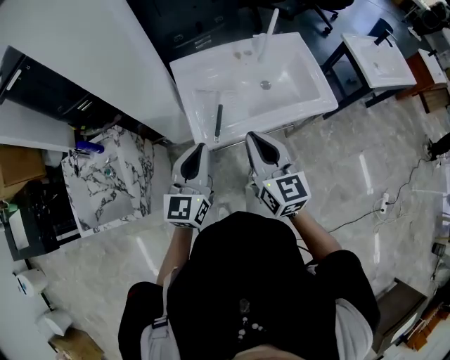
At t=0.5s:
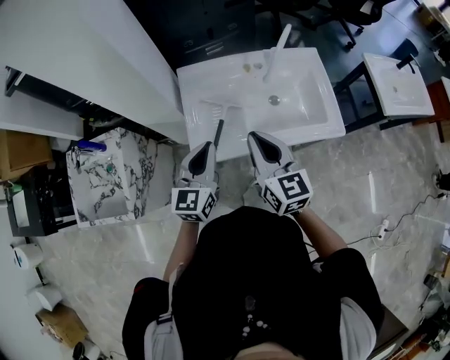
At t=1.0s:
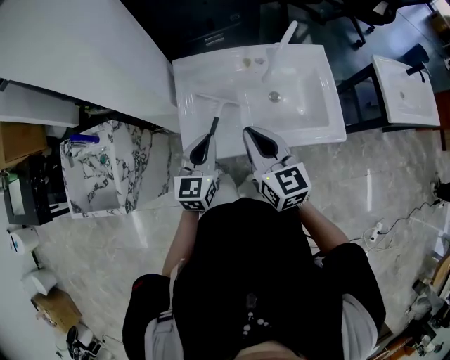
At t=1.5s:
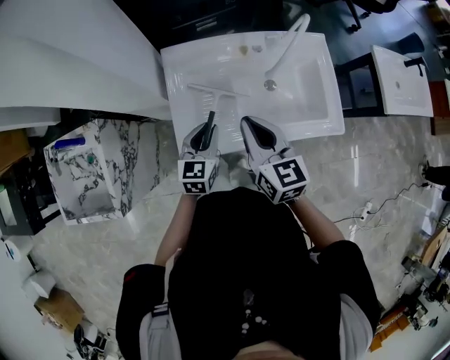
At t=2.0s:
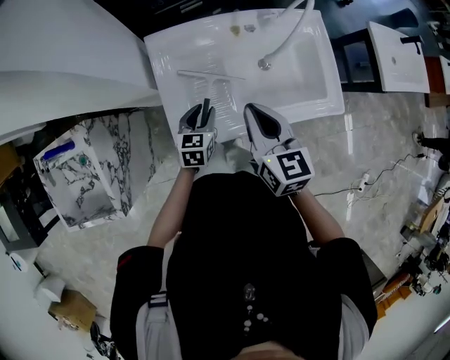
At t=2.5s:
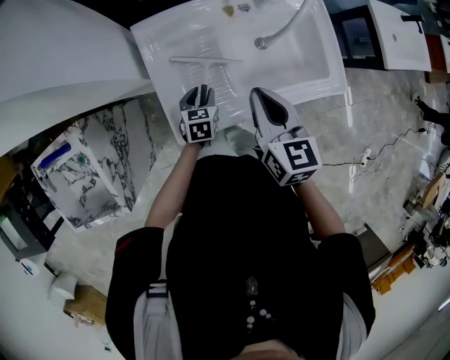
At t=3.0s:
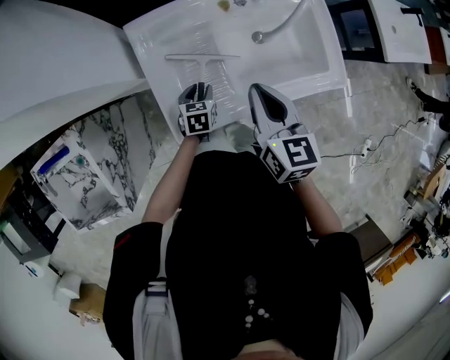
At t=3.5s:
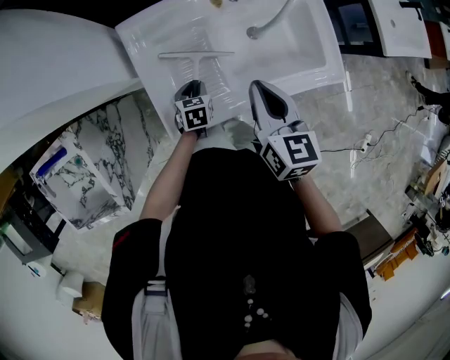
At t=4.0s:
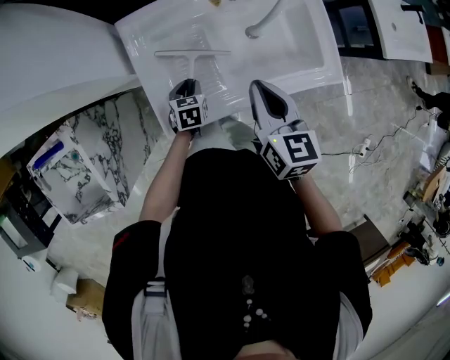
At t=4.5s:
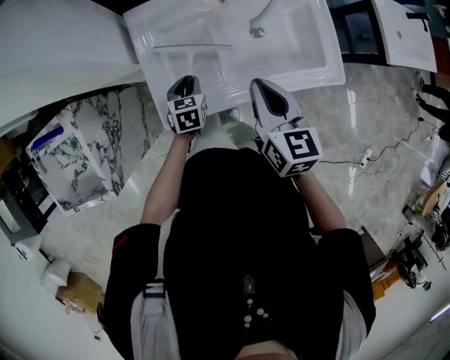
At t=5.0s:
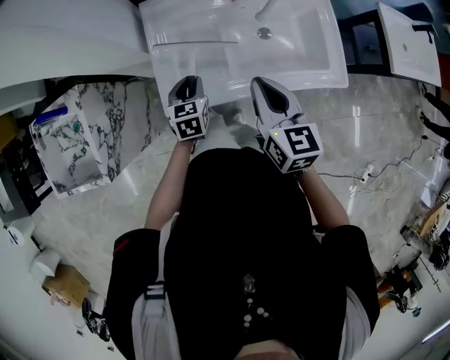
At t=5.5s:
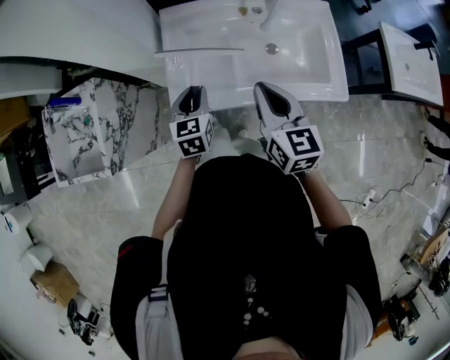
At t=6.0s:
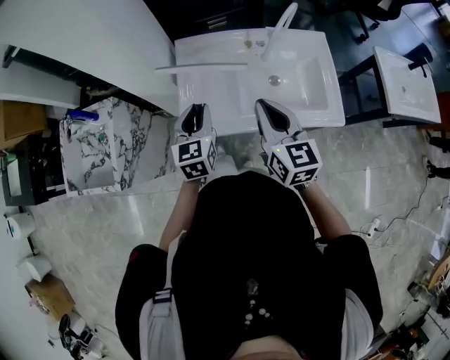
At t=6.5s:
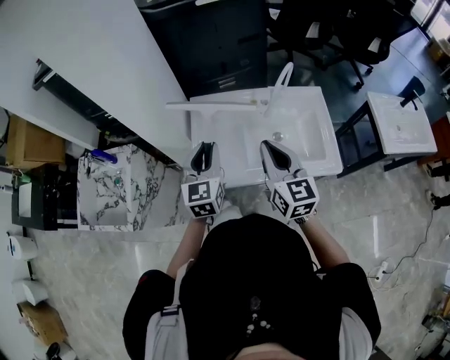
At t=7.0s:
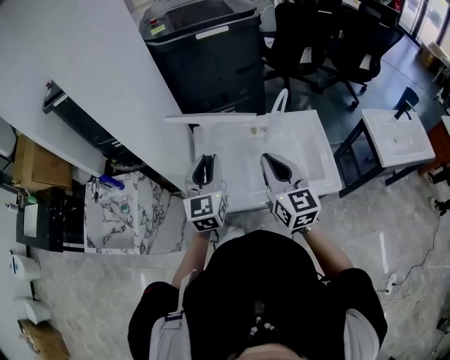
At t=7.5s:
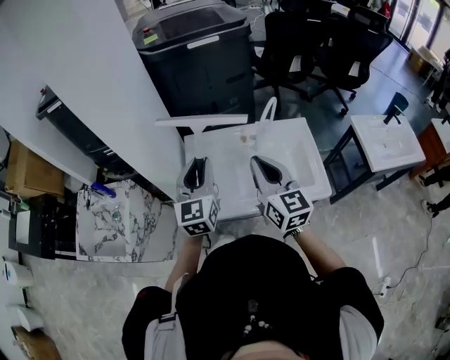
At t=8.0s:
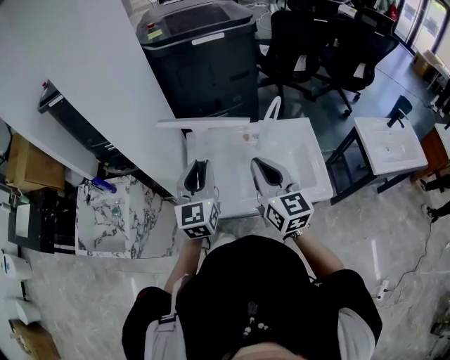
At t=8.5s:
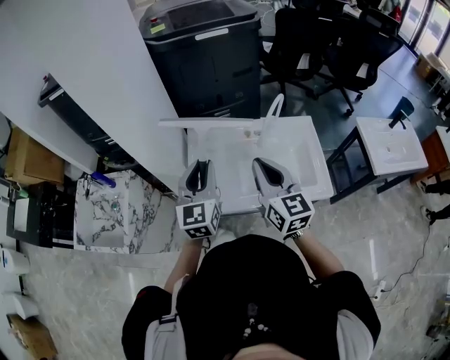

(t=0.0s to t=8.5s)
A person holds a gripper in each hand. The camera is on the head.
t=0.0s - t=2.0s: The left gripper goes some 30 cm downward and forward, angles its fingers downward, by some 30 degrees, and opens; the right gripper goes approximately 20 cm forward and downward.
t=2.0s - t=4.0s: The right gripper heads to the right, covering about 5 cm. Meanwhile the left gripper moves downward, roughly 10 cm.
t=4.0s - t=6.5s: The left gripper moves upward, some 35 cm, and tilts its fingers about 40 degrees upward; the right gripper goes some 15 cm upward and backward, and turns by about 30 degrees.
t=6.5s - t=8.5s: The left gripper moves upward, roughly 5 cm.

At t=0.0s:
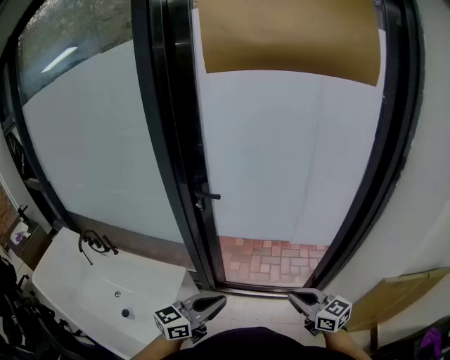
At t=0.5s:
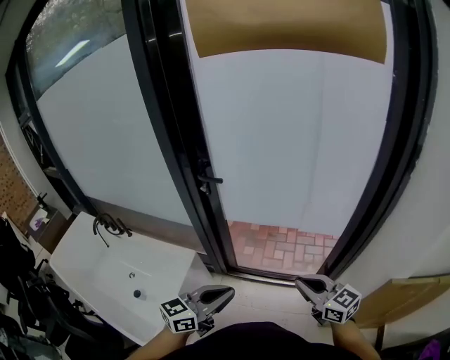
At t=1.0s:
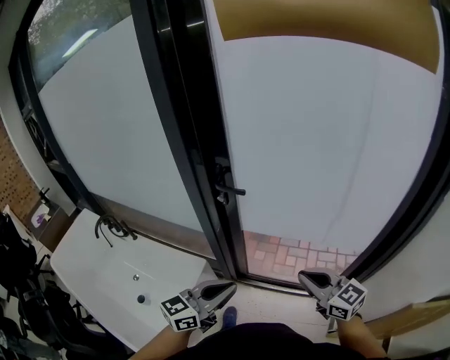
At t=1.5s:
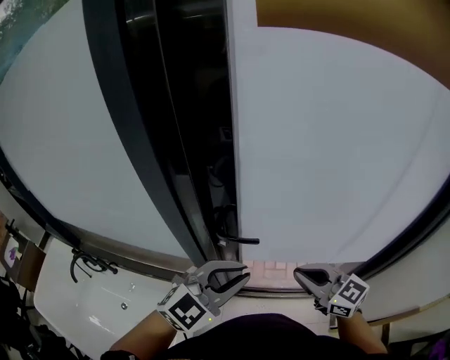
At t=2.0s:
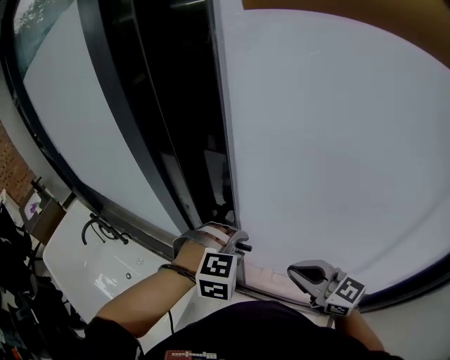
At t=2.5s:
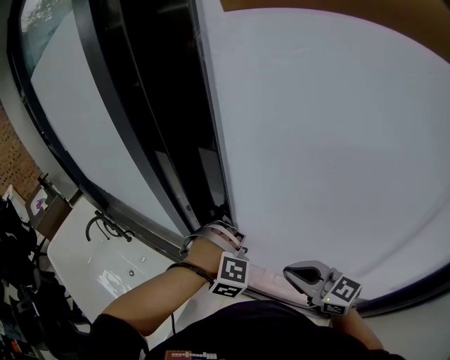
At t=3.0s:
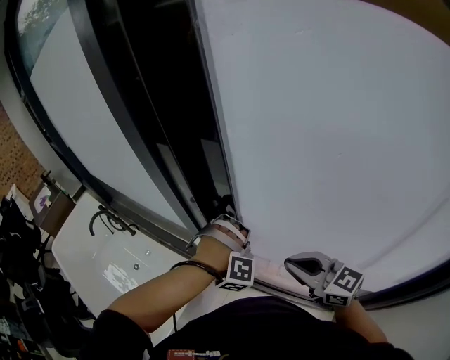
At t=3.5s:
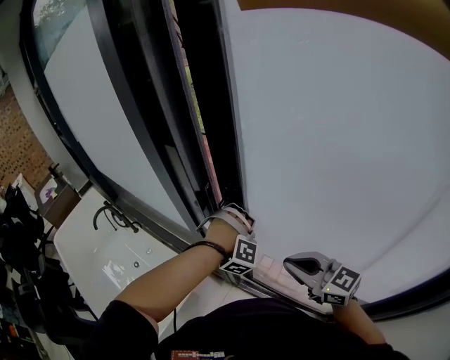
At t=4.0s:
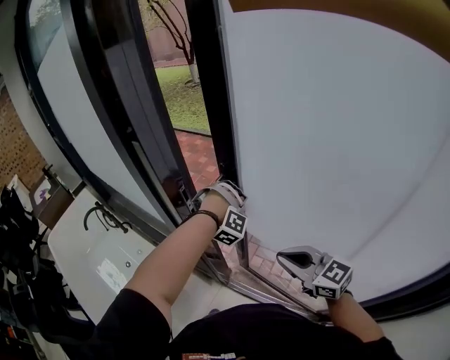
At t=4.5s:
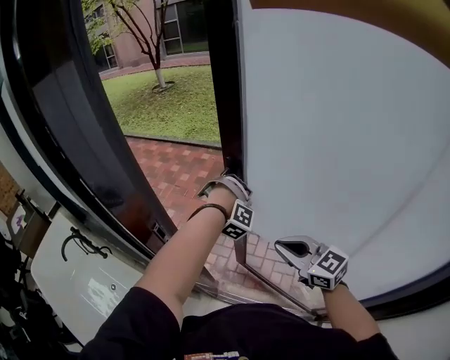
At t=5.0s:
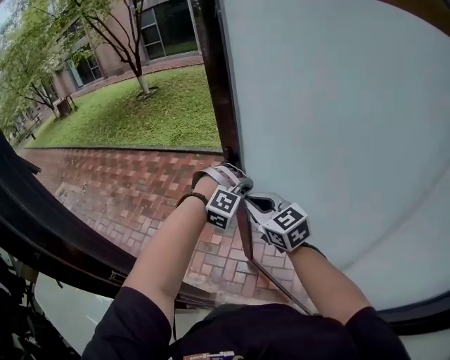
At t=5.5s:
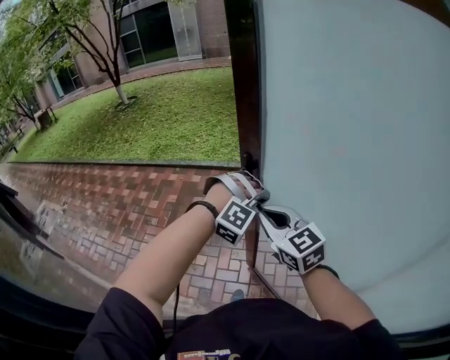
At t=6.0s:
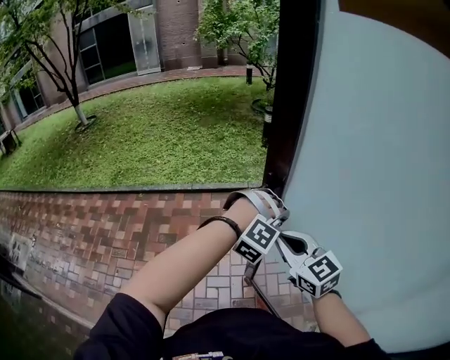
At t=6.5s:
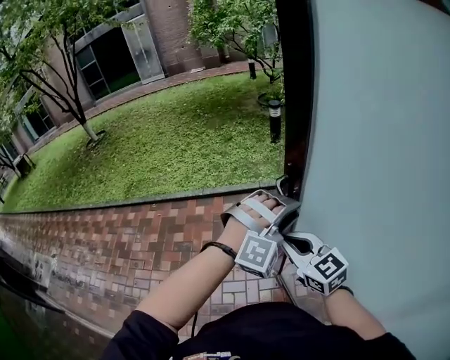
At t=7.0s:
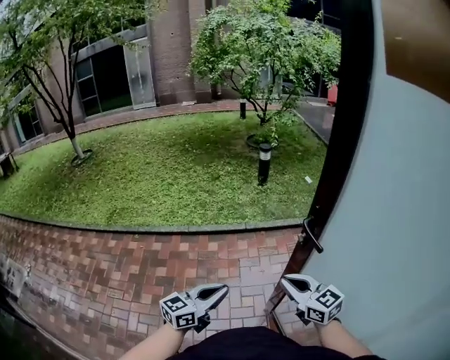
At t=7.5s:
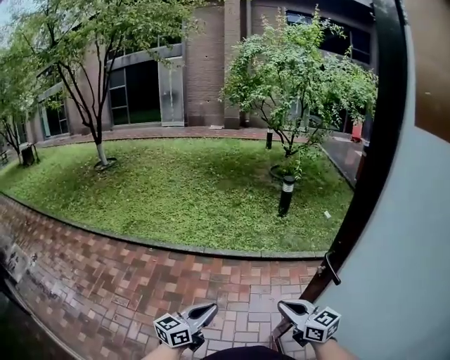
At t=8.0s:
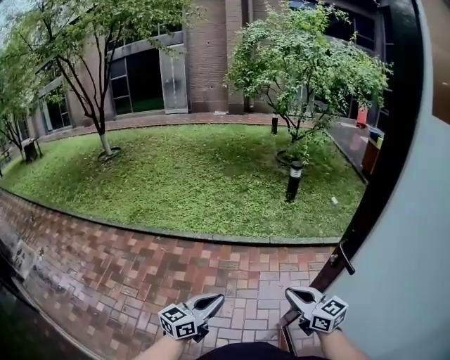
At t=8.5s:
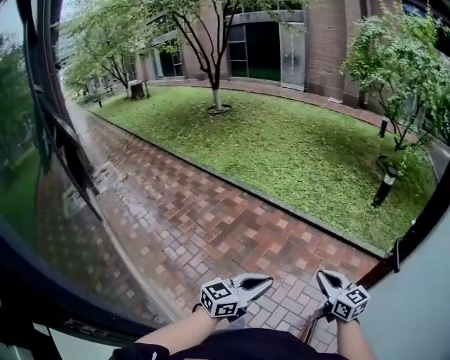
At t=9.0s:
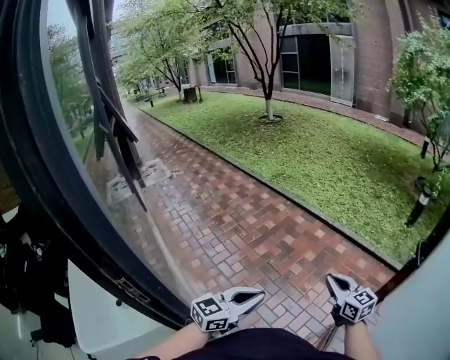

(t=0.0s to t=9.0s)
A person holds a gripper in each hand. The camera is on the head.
t=0.0s - t=2.0s: The right gripper moves some 35 cm, and rotates roughly 20 degrees, while the left gripper moves roughly 10 cm upward and comes back, tilts its fingers approximately 50 degrees downward, and opens up.
t=2.0s - t=4.5s: The right gripper goes about 15 cm to the right and forward; the left gripper heads to the right and forward, covering approximately 30 cm, turns by roughly 40 degrees, and closes up.
t=4.5s - t=7.0s: The left gripper travels upward and back again, some 10 cm each way, angles its fingers upward, by approximately 40 degrees, and opens and closes again. Meanwhile the right gripper shifts by some 50 cm, and turns by some 30 degrees.
t=7.0s - t=9.0s: The left gripper shifts by approximately 30 cm, and swivels some 50 degrees, while the right gripper moves roughly 15 cm, and rotates some 40 degrees.

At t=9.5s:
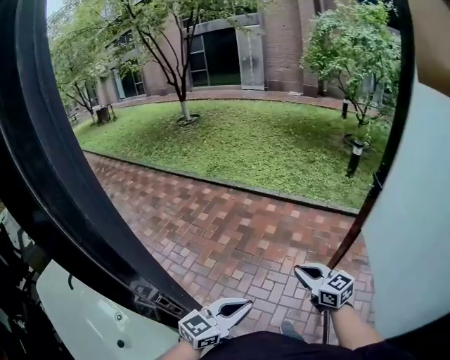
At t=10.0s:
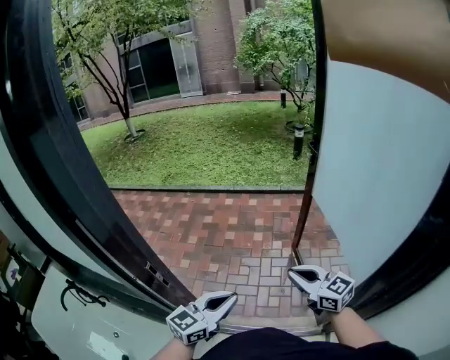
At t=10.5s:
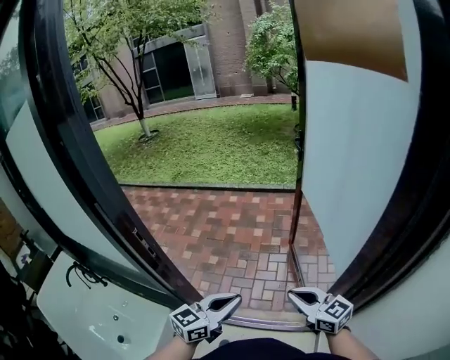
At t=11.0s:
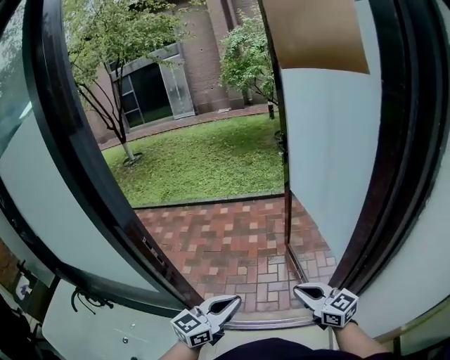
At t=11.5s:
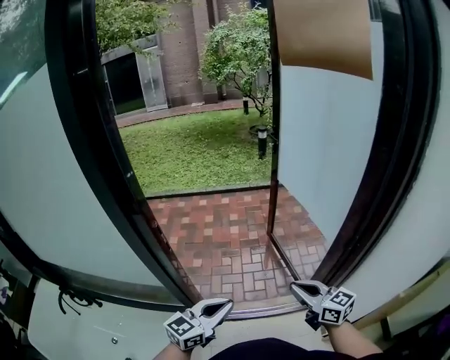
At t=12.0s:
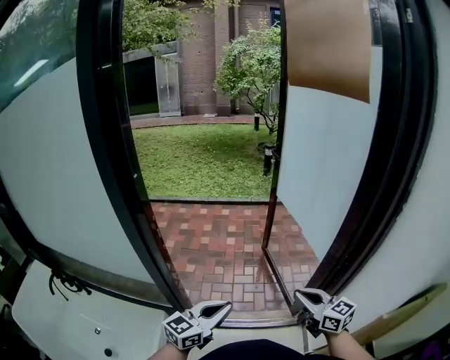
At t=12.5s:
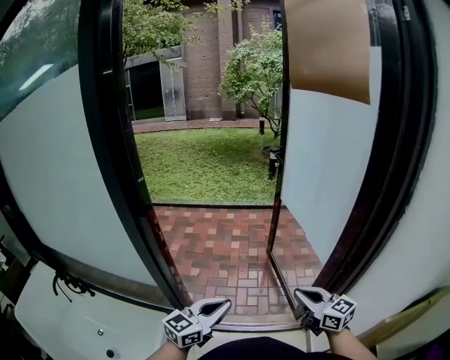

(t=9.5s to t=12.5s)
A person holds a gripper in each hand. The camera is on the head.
t=9.5s - t=11.0s: The left gripper travels backward by about 25 cm, while the right gripper travels backward and to the right by roughly 40 cm.
t=11.0s - t=12.5s: The grippers both shift backward by some 10 cm.

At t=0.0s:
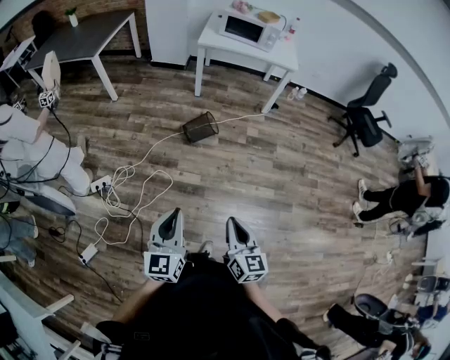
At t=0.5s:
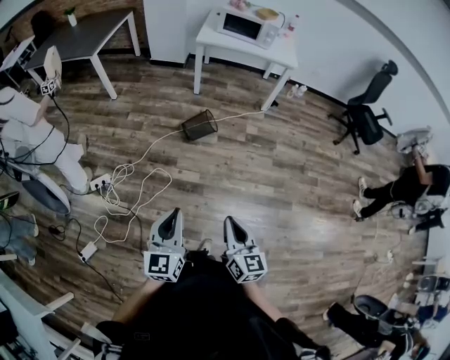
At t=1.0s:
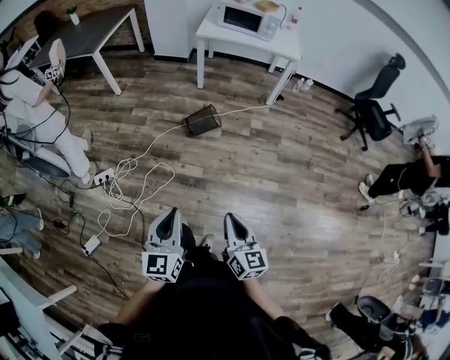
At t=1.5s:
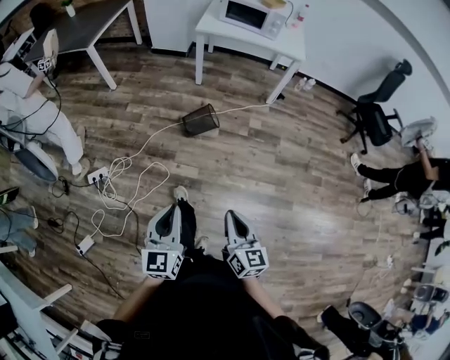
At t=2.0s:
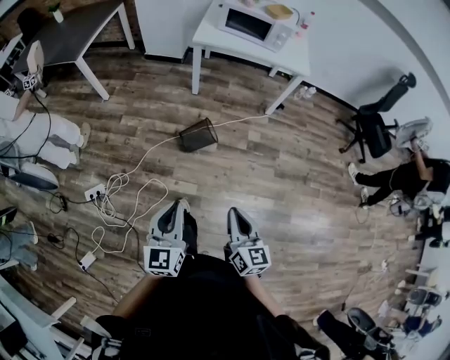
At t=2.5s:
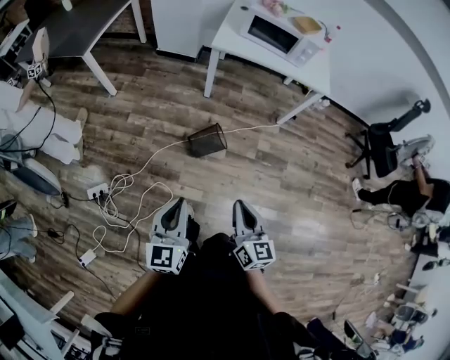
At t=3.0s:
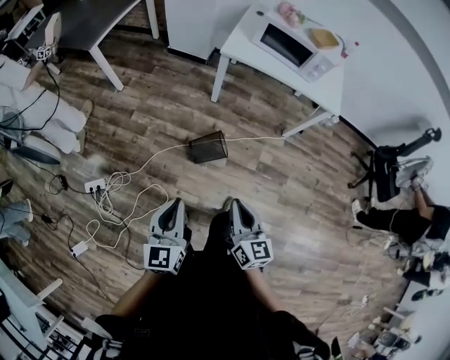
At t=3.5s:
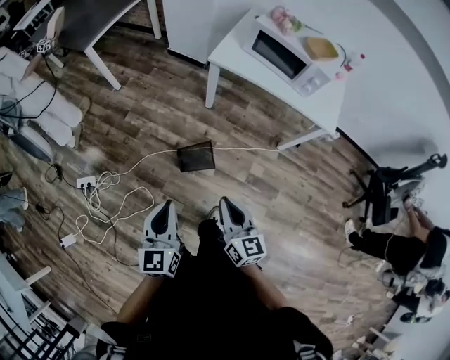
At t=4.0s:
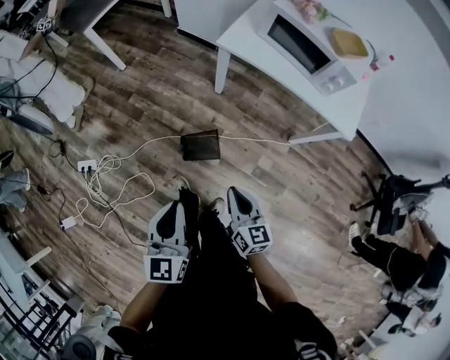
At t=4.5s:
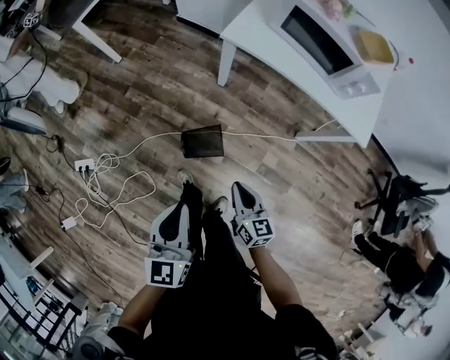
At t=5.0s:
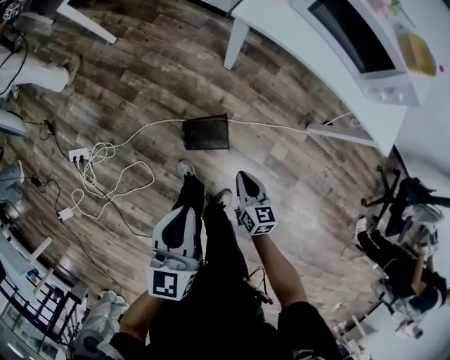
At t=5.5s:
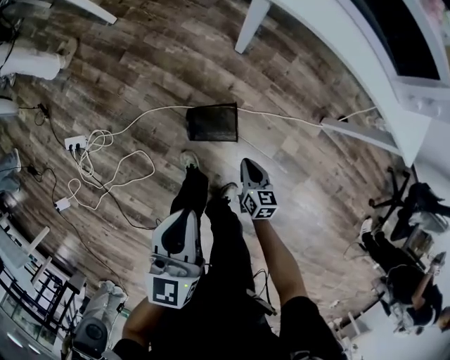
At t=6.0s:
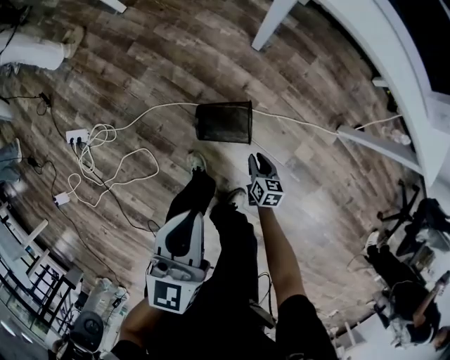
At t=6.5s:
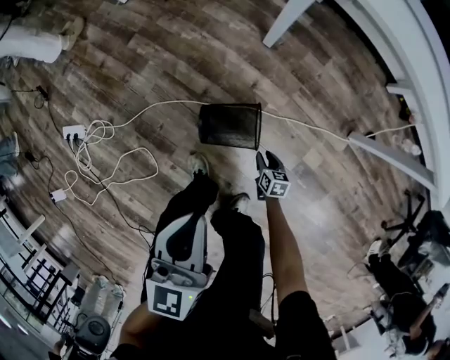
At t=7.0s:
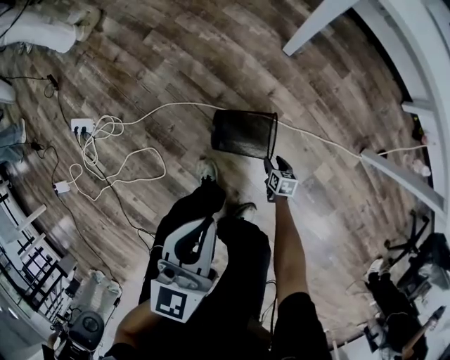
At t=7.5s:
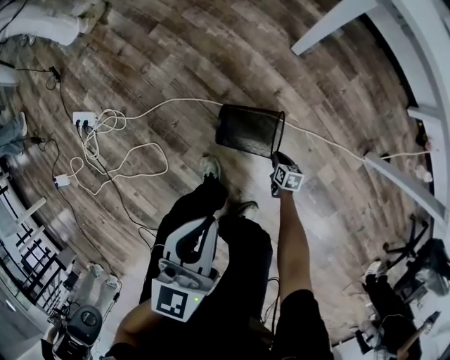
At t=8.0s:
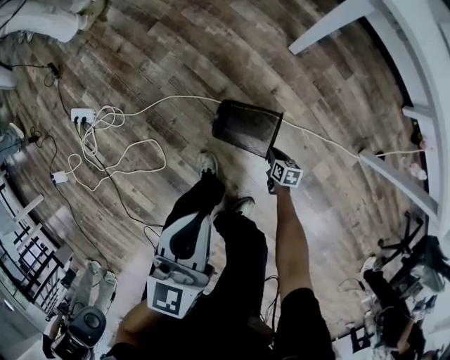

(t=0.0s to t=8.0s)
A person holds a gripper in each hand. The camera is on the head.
t=0.0s - t=2.0s: Both grippers move forward, about 25 cm.
t=2.0s - t=4.0s: The grippers both shift forward and to the right by about 35 cm. The right gripper rotates about 30 degrees. Meanwhile the left gripper rotates approximately 20 degrees.
t=4.0s - t=6.0s: The right gripper heads downward, covering some 50 cm, and turns by about 30 degrees, while the left gripper moves downward and forward, approximately 25 cm.
t=6.0s - t=8.0s: The right gripper travels downward by about 20 cm, and opens, then closes again. The left gripper shifts about 10 cm downward.
